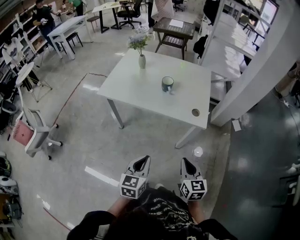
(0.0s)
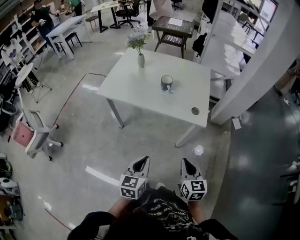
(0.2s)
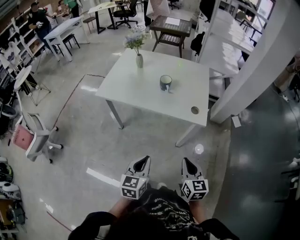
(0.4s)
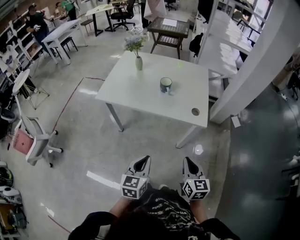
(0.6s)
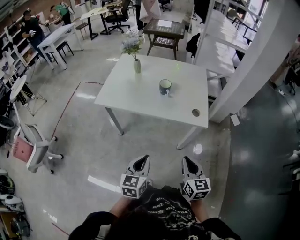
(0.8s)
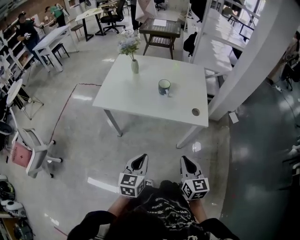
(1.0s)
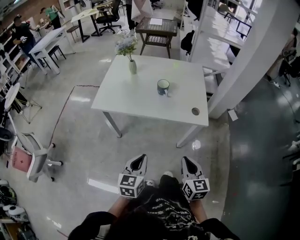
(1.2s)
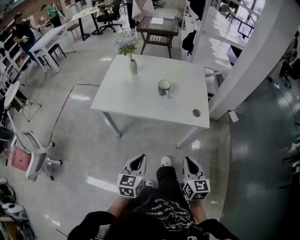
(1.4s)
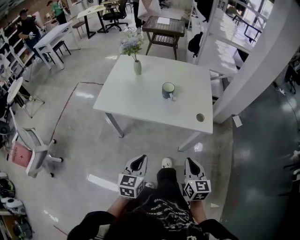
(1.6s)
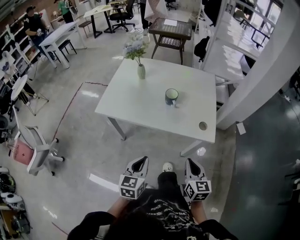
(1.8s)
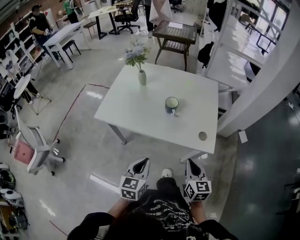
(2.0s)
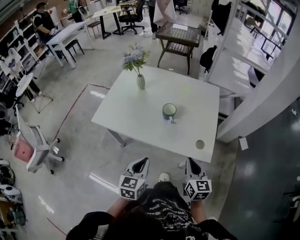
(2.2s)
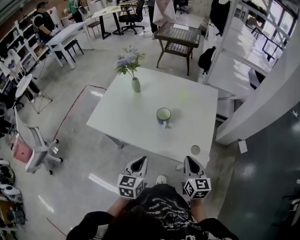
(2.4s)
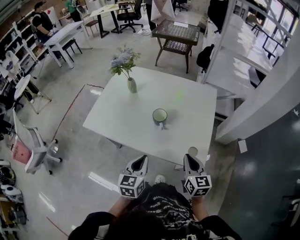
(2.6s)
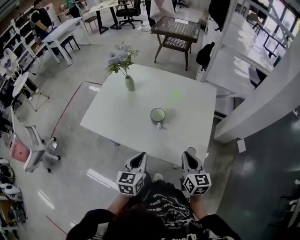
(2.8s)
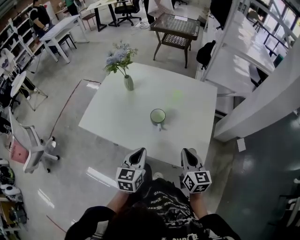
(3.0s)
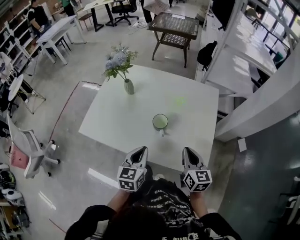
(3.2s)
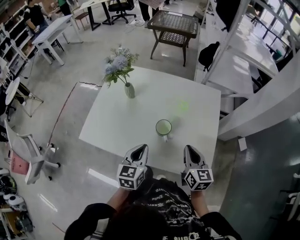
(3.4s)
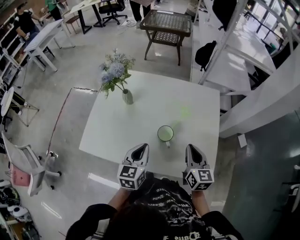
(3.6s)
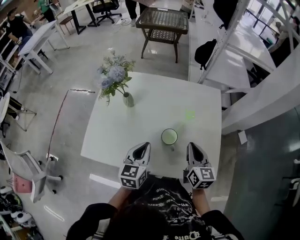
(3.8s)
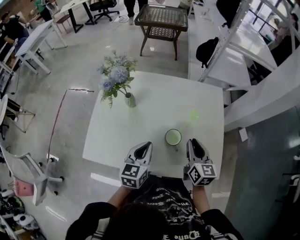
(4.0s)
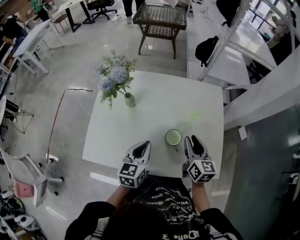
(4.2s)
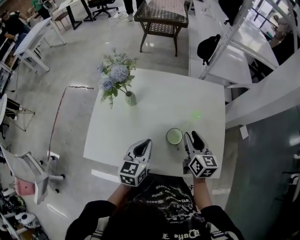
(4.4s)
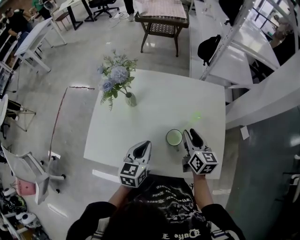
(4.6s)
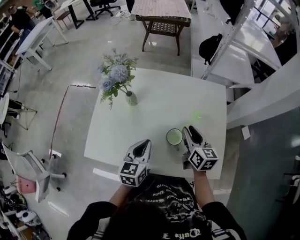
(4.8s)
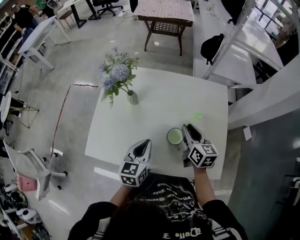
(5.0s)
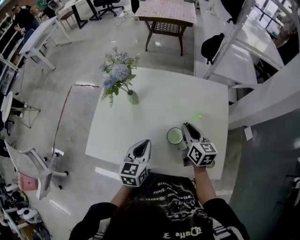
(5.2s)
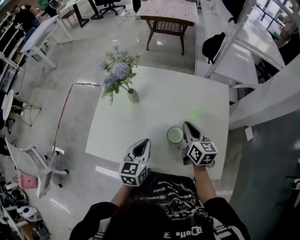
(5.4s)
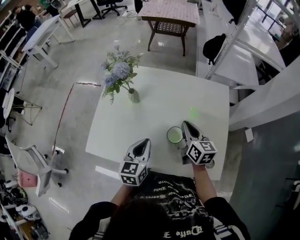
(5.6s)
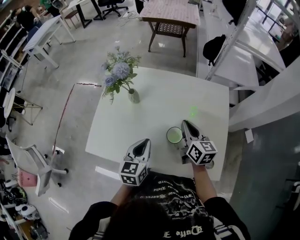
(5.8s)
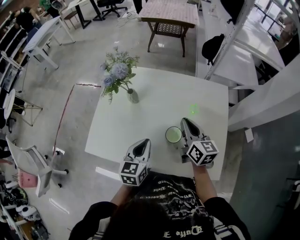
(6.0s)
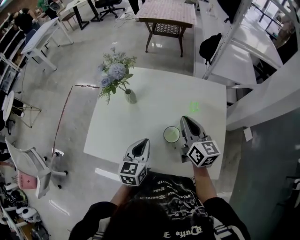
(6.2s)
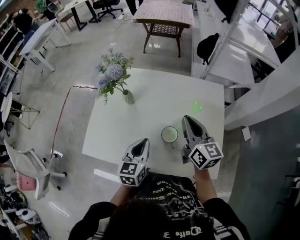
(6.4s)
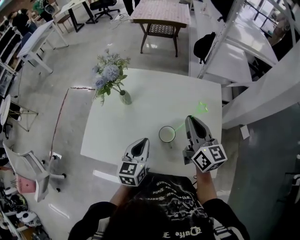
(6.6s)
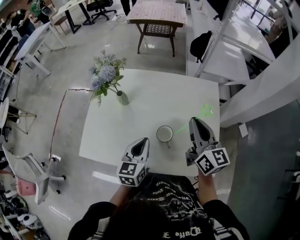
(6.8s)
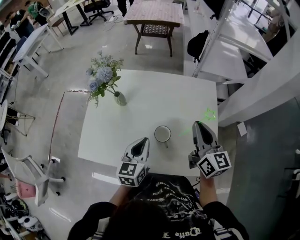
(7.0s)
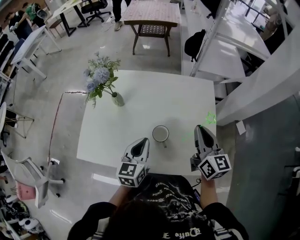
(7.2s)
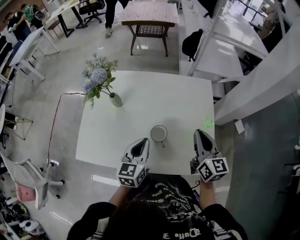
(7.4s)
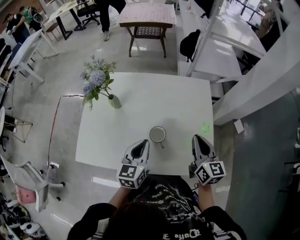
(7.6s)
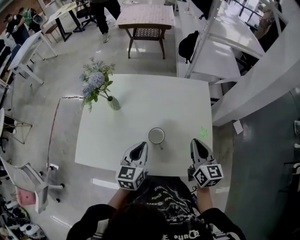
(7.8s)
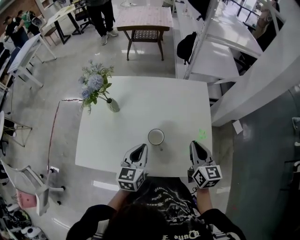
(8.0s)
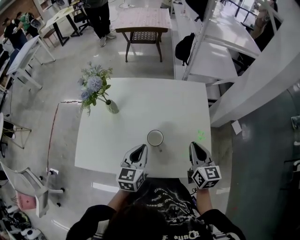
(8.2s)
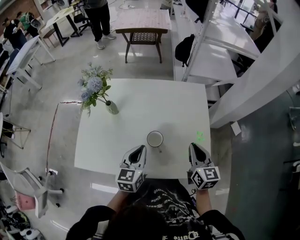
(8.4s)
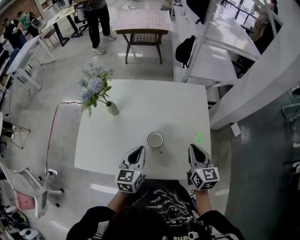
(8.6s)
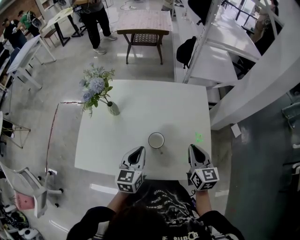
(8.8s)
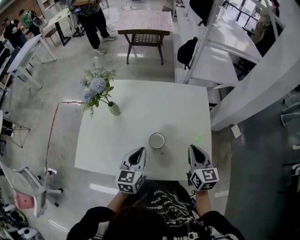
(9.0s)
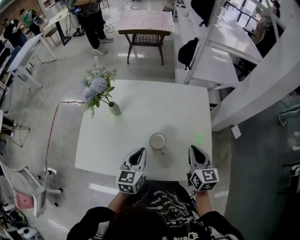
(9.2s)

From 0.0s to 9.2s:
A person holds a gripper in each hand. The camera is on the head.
From 0.0s to 1.6s: The two grippers go approximately 10 cm forward and to the left.
From 1.6s to 3.0s: The right gripper shifts some 35 cm forward; the left gripper travels forward and to the right by some 30 cm.
From 3.0s to 4.6s: Both grippers travel together forward and to the left, approximately 25 cm. The right gripper opens its fingers.
From 4.6s to 6.2s: The right gripper shifts approximately 5 cm upward, and closes.
From 6.2s to 7.6s: The left gripper heads to the right, covering approximately 5 cm; the right gripper shifts approximately 15 cm to the right and backward.
From 7.6s to 9.2s: There are only small adjustments of the grippers.

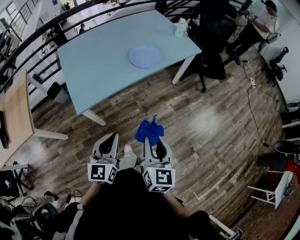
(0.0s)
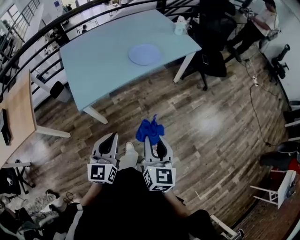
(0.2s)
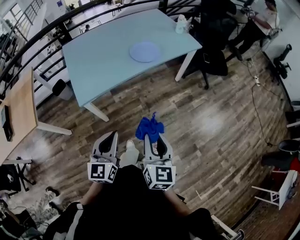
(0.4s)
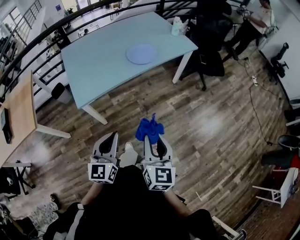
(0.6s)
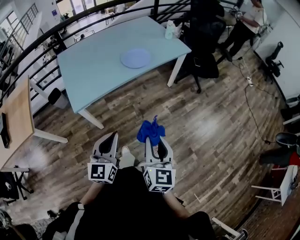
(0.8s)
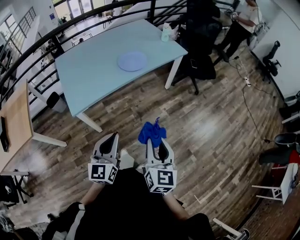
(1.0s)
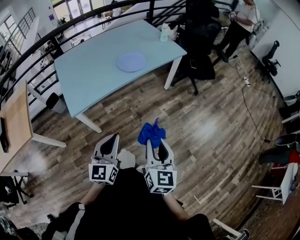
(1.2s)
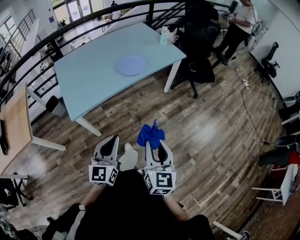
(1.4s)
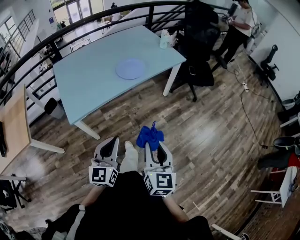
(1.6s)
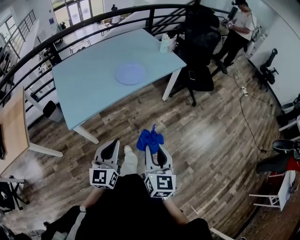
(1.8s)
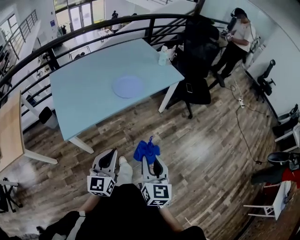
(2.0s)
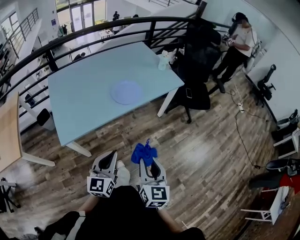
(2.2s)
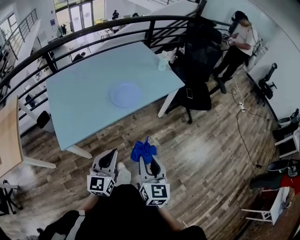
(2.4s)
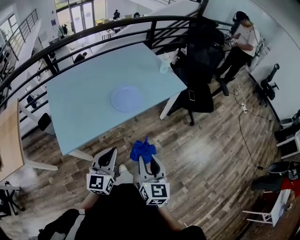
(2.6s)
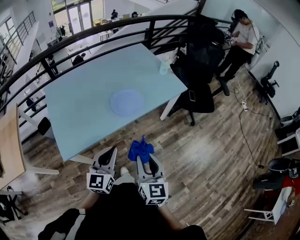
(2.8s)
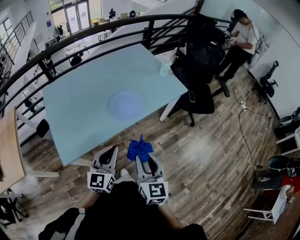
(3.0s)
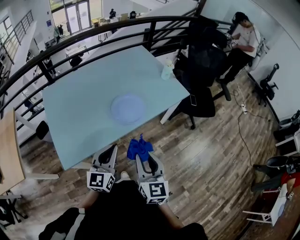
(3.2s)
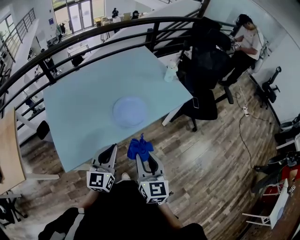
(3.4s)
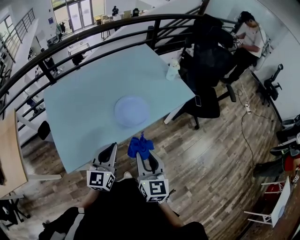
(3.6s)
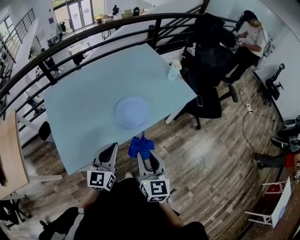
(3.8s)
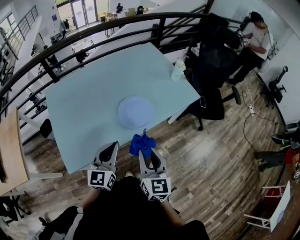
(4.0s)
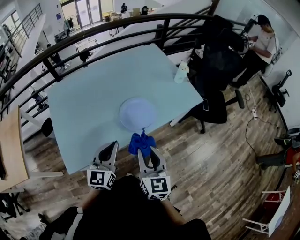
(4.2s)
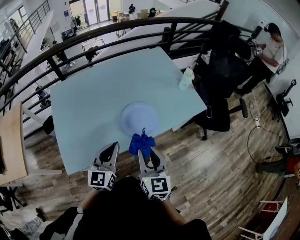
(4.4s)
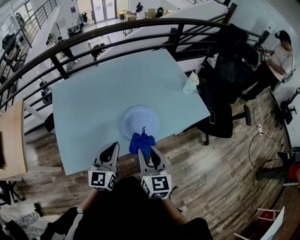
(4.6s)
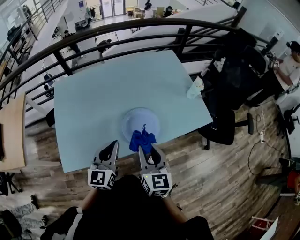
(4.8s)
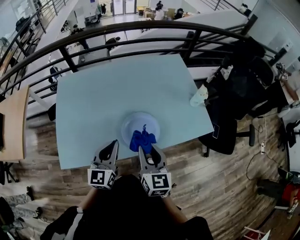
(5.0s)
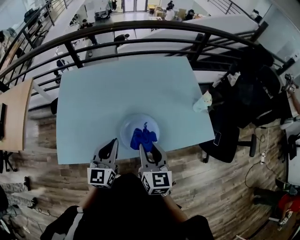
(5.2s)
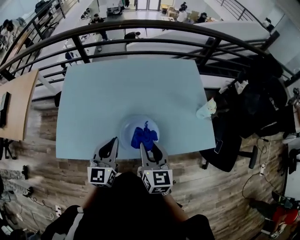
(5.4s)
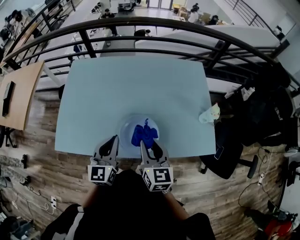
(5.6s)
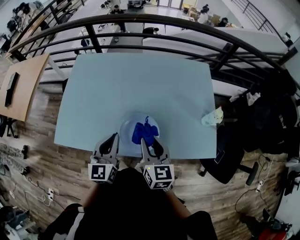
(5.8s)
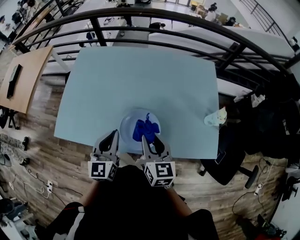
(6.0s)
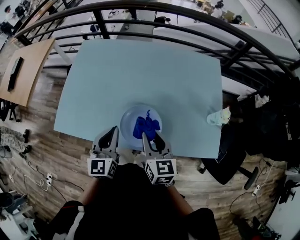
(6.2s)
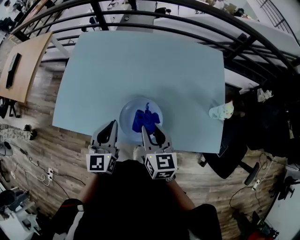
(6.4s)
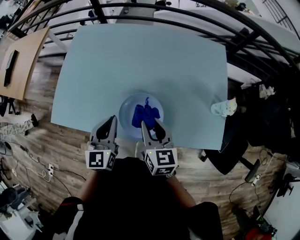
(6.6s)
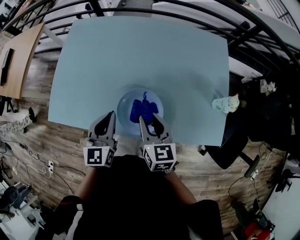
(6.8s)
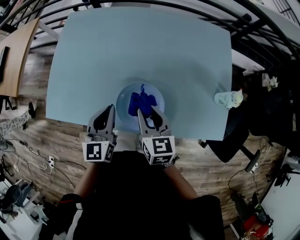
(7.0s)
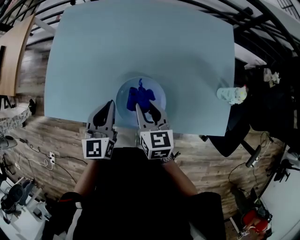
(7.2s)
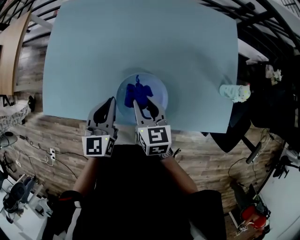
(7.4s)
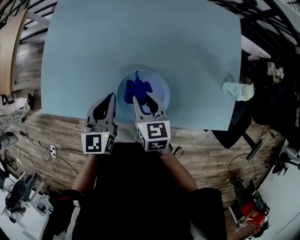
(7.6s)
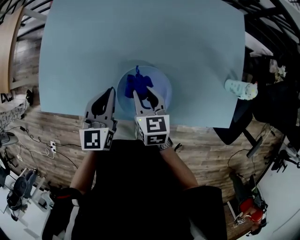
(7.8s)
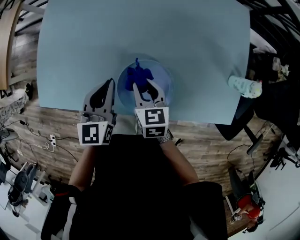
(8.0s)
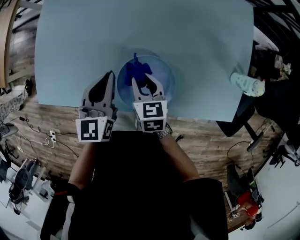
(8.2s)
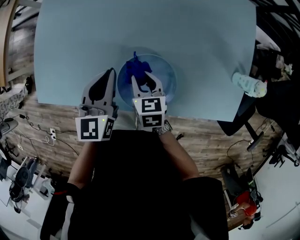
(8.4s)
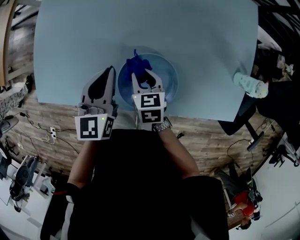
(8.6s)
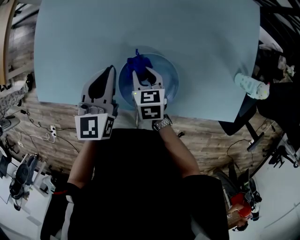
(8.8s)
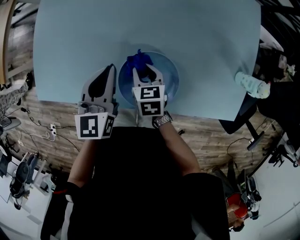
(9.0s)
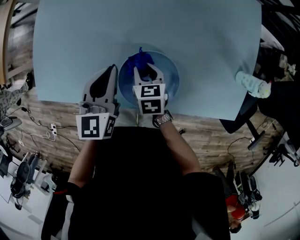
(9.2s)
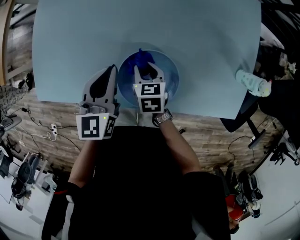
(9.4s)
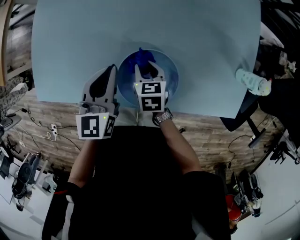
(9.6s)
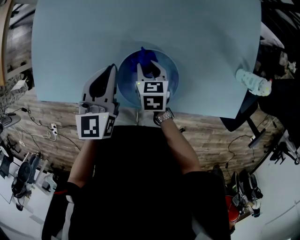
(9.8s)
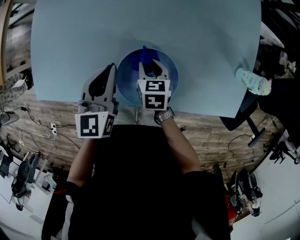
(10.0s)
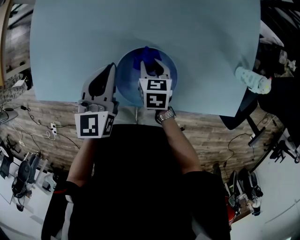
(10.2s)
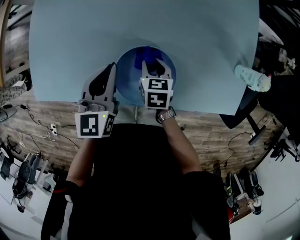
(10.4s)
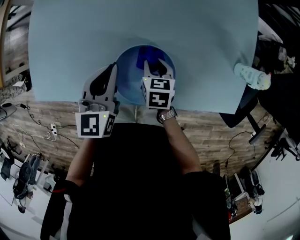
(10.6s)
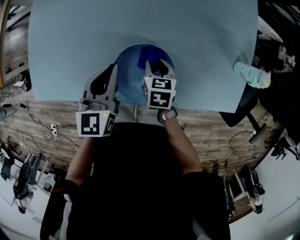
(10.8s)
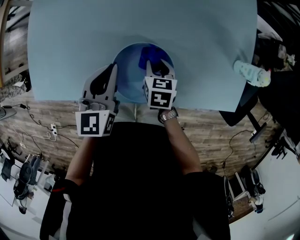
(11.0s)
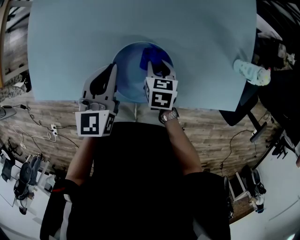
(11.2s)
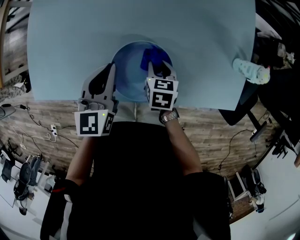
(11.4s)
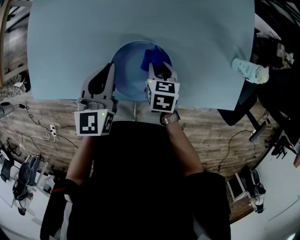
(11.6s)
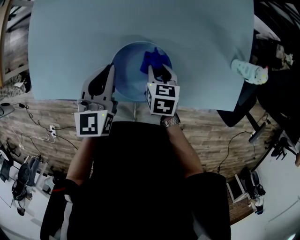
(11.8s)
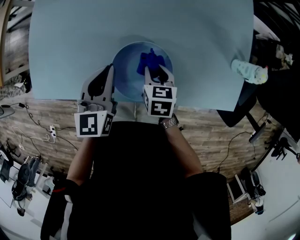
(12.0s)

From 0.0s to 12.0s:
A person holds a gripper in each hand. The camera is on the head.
From 0.0s to 1.6s: The two grippers go about 10 cm to the right.
From 1.6s to 3.0s: The two grippers go approximately 25 cm forward.
From 3.0s to 4.4s: The two grippers go roughly 15 cm forward.
From 4.4s to 6.0s: The left gripper changes place by roughly 10 cm, and rotates approximately 40 degrees; the right gripper changes place by some 20 cm, and changes its angle by roughly 40 degrees.
From 6.0s to 7.6s: The grippers both shift downward and forward by roughly 15 cm.
From 7.6s to 9.0s: The left gripper goes some 5 cm forward. Meanwhile the right gripper goes roughly 10 cm downward.
From 9.0s to 10.4s: The right gripper goes about 5 cm to the right.
From 10.4s to 12.0s: The right gripper changes place by some 5 cm.

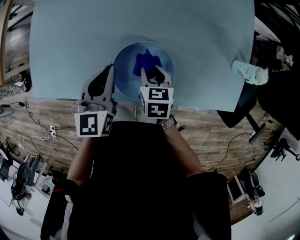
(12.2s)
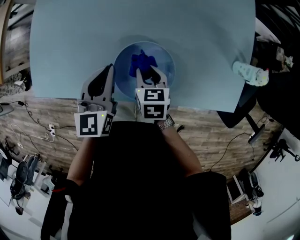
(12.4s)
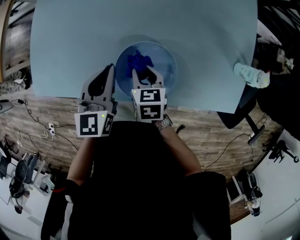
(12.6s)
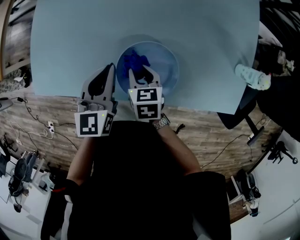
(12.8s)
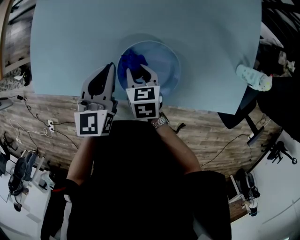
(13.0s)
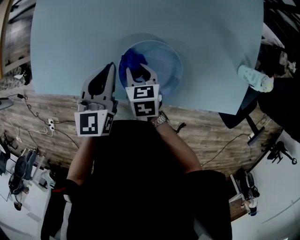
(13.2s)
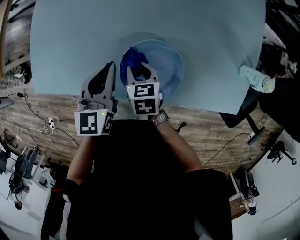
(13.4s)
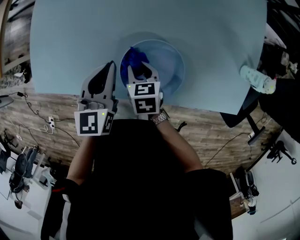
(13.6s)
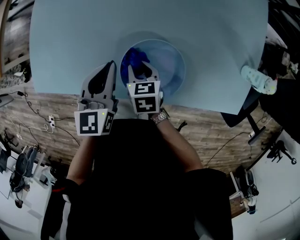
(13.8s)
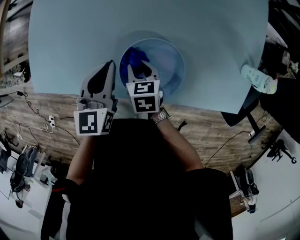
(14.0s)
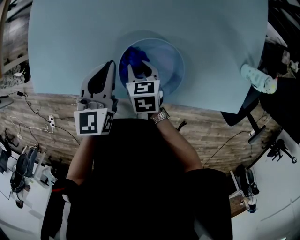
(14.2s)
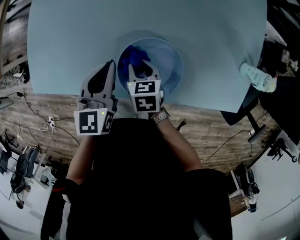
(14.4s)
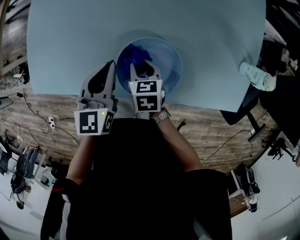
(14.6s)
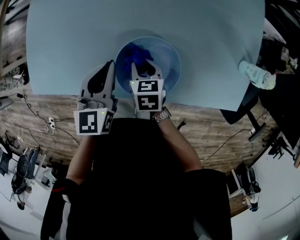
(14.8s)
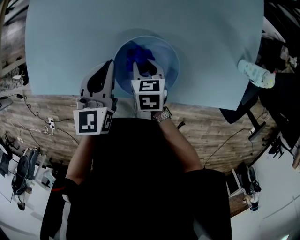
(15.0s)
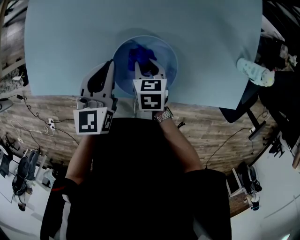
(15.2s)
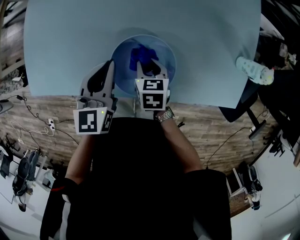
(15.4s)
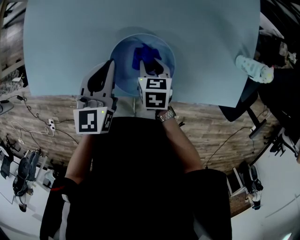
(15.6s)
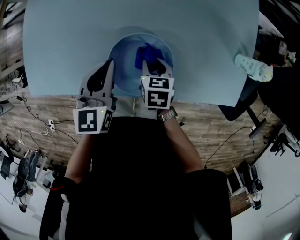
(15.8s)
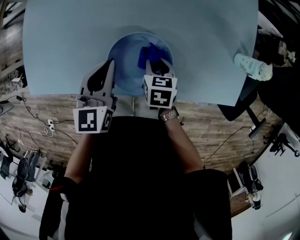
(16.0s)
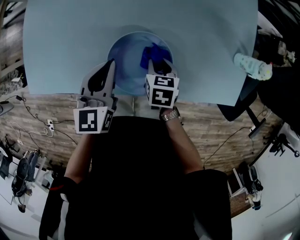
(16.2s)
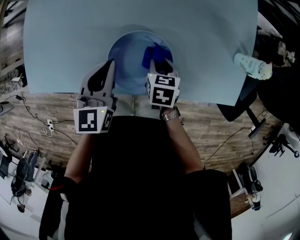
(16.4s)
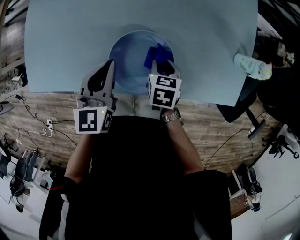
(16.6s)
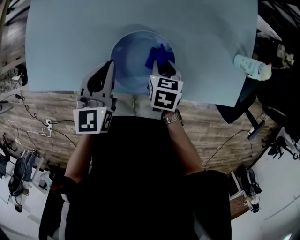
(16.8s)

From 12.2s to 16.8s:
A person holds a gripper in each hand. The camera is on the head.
From 12.2s to 13.8s: The right gripper is displaced to the left by about 10 cm.
From 13.8s to 15.2s: The right gripper ends up about 5 cm from where it was.
From 15.2s to 16.8s: The right gripper goes roughly 10 cm to the right.
